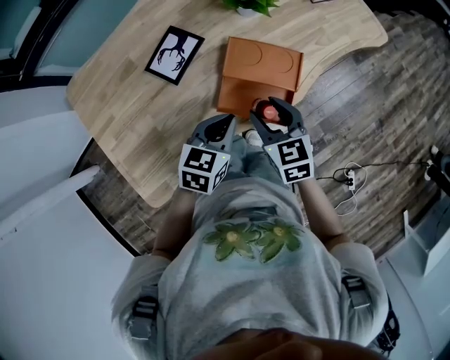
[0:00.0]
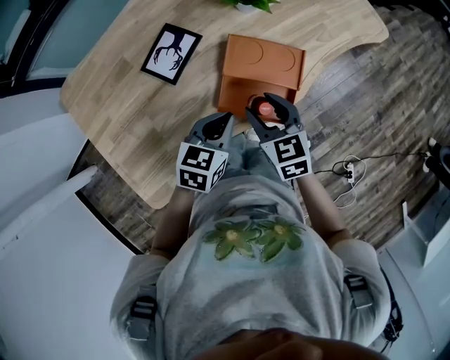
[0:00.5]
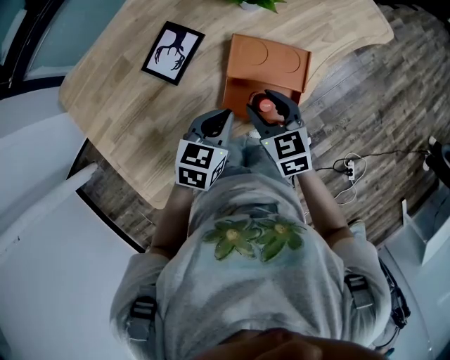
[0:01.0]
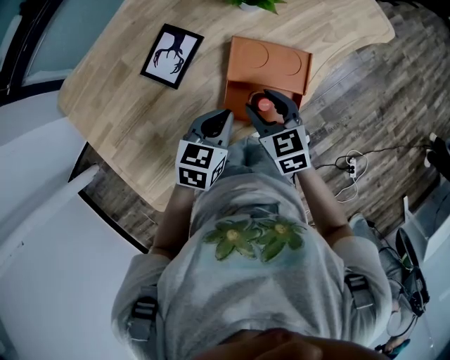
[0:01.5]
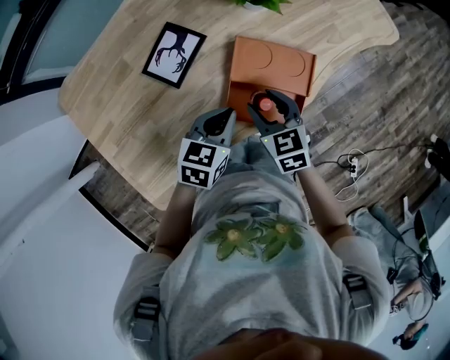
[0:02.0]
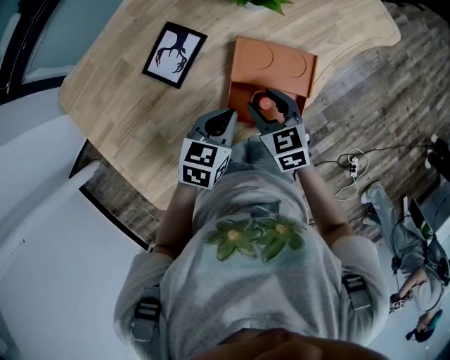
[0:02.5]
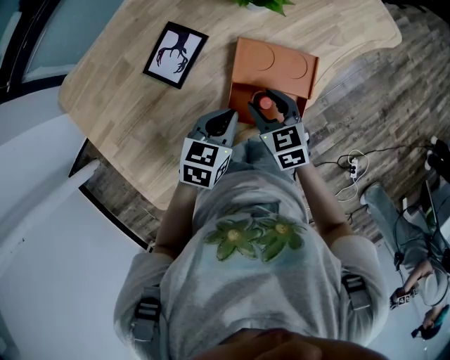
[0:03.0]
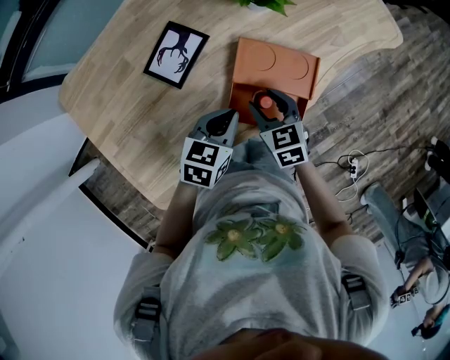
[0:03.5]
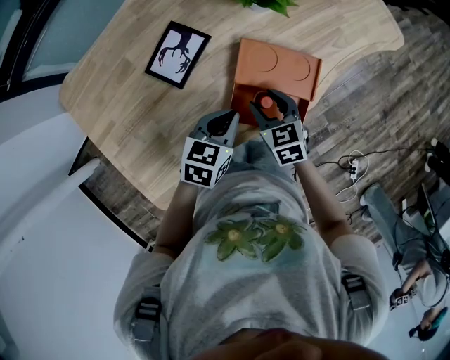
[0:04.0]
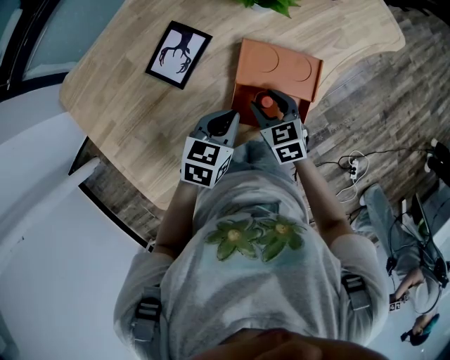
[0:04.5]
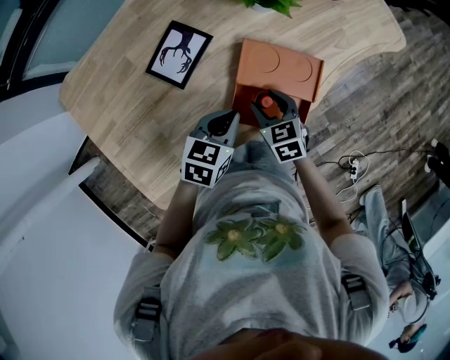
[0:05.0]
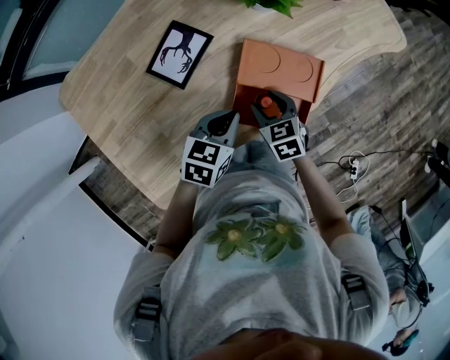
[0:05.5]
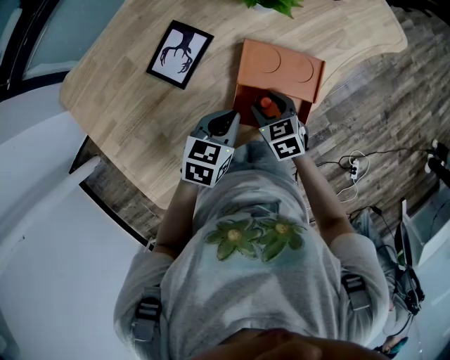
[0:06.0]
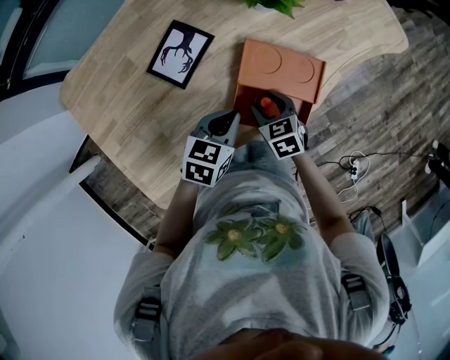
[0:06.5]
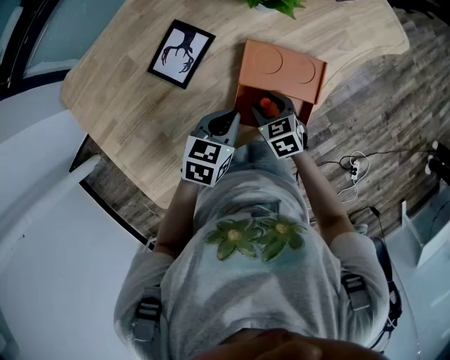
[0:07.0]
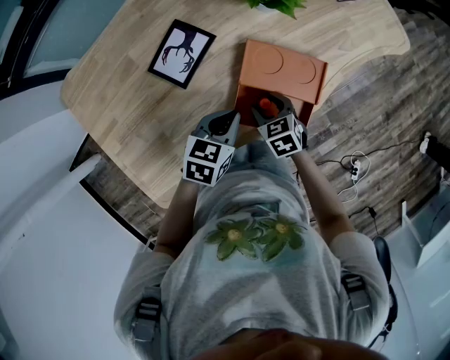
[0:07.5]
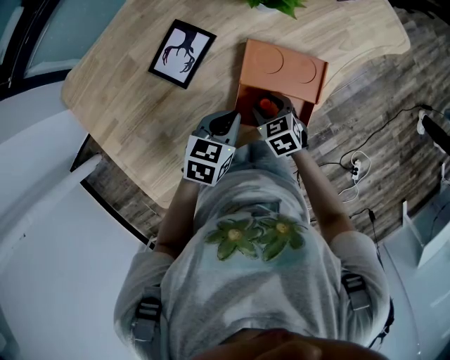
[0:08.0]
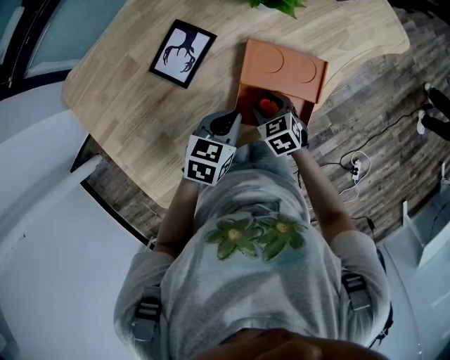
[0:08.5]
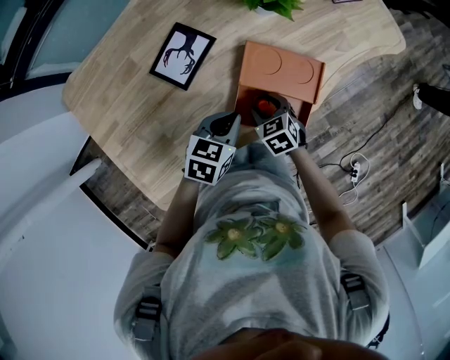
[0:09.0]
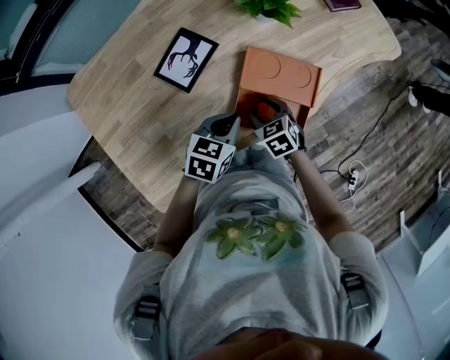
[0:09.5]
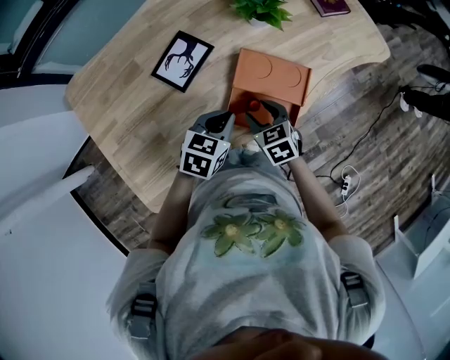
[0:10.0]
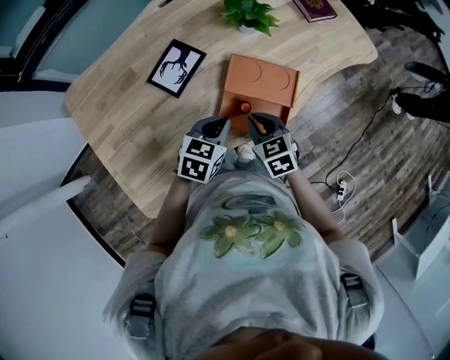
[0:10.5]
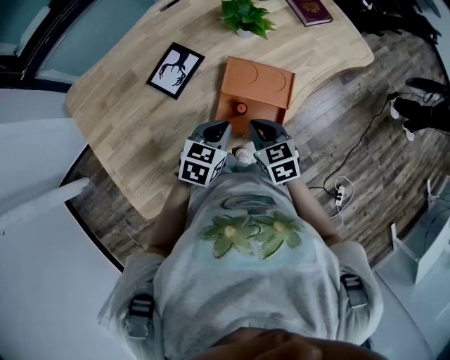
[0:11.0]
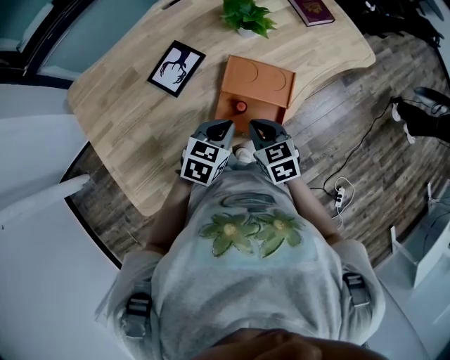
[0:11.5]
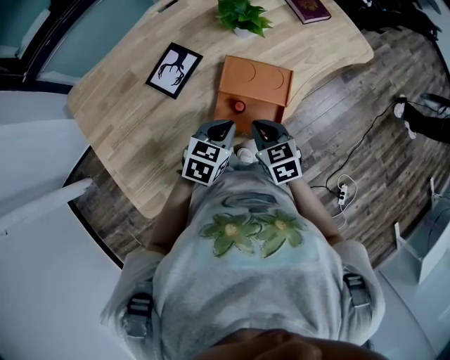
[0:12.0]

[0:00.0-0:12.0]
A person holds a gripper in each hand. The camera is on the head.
0:00.0 to 0:02.0: The right gripper is displaced downward and forward by some 5 cm; the left gripper heads forward, covering roughly 5 cm.
0:02.0 to 0:04.0: The grippers stay close to where they were, moving slightly.
0:04.0 to 0:06.0: There are only small adjustments of the grippers.
0:06.0 to 0:08.0: The grippers move only a little.
0:08.0 to 0:10.0: The right gripper travels upward by roughly 5 cm.
0:10.0 to 0:12.0: The left gripper heads to the right, covering roughly 5 cm. Meanwhile the right gripper travels upward by approximately 5 cm, and closes up.

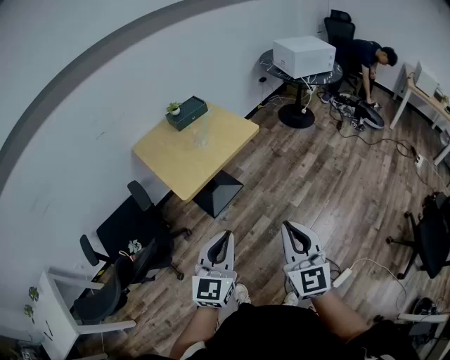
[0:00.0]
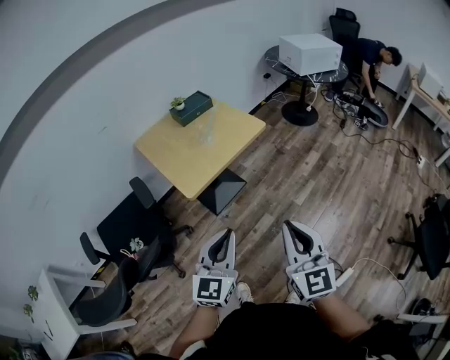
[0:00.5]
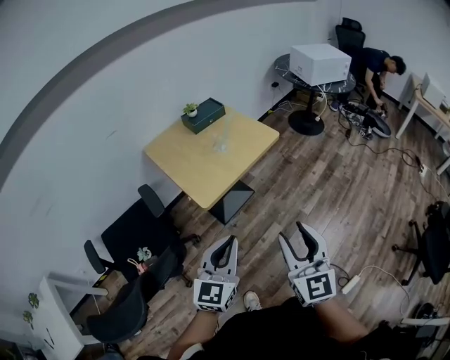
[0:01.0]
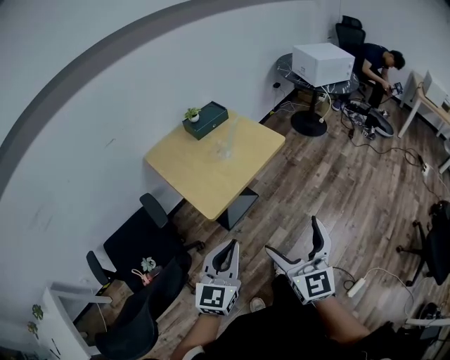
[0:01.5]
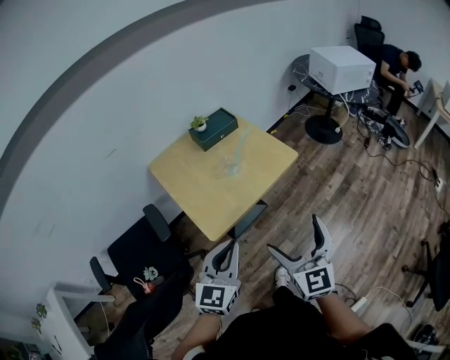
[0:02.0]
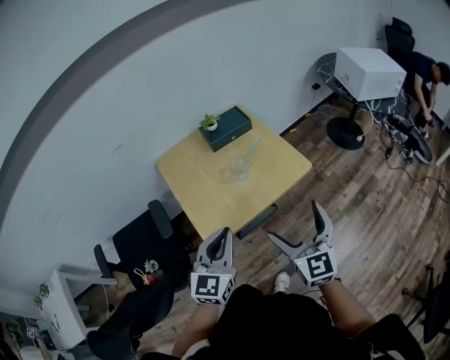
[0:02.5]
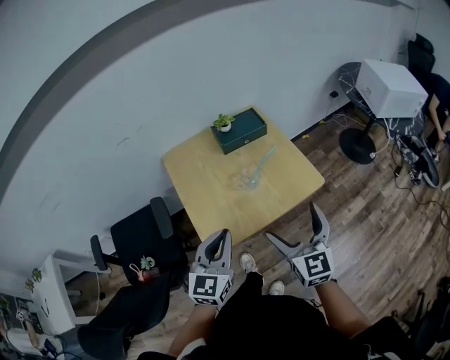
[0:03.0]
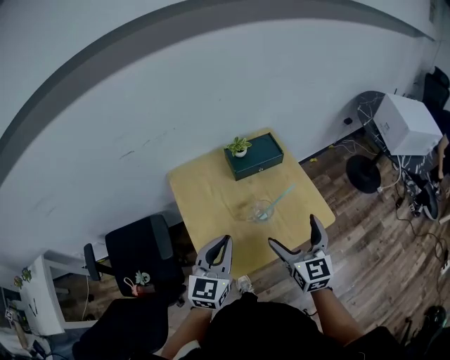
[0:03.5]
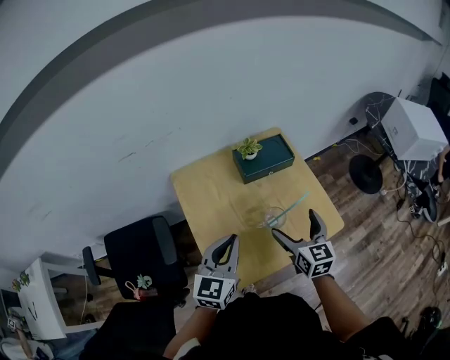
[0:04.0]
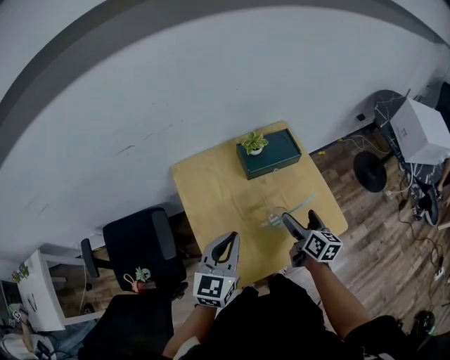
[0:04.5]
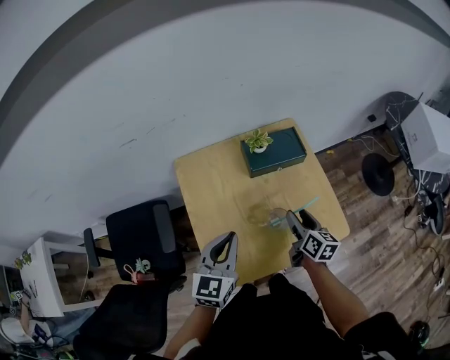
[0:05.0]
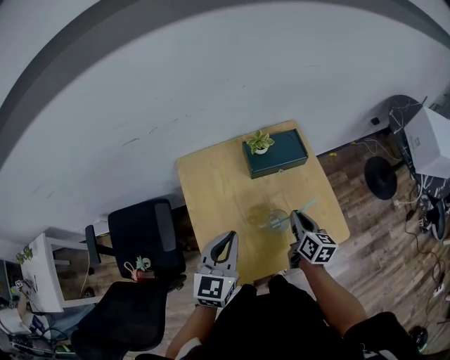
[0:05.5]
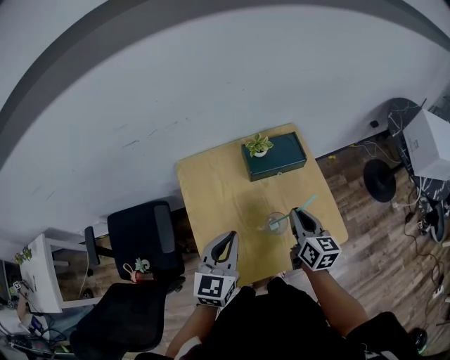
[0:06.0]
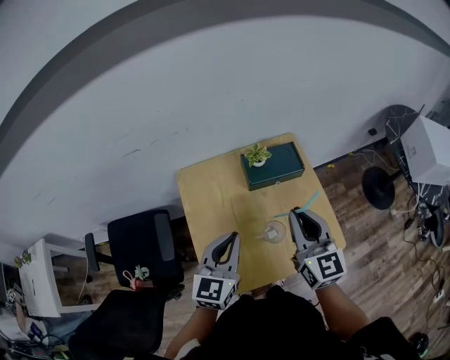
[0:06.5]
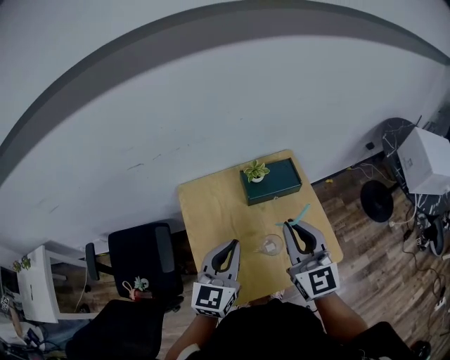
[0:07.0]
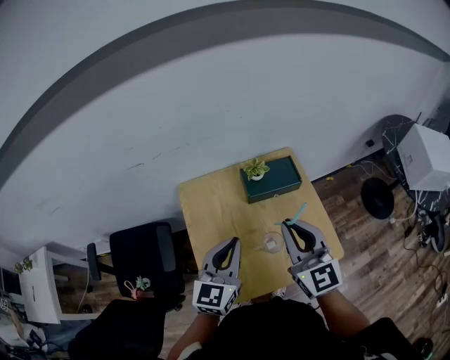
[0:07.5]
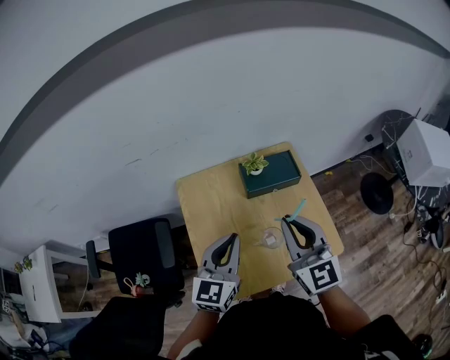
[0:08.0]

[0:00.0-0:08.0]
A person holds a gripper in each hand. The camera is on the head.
0:00.0 to 0:02.0: The two grippers go approximately 25 cm forward and to the left. The right gripper opens its fingers.
0:02.0 to 0:04.0: Both grippers travel together forward, approximately 35 cm. The right gripper changes its angle by about 30 degrees.
0:04.0 to 0:06.0: The right gripper shifts some 5 cm forward, moves approximately 10 cm downward and comes back, and closes up.
0:06.0 to 0:08.0: The right gripper goes about 20 cm upward, and changes its angle by roughly 40 degrees; the left gripper moves upward, roughly 5 cm.

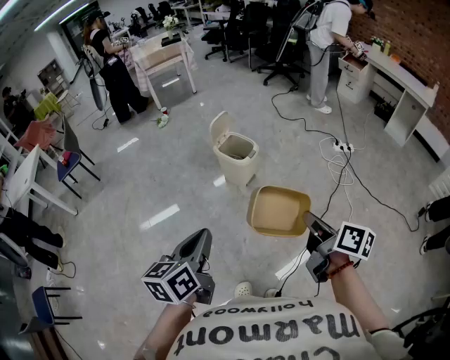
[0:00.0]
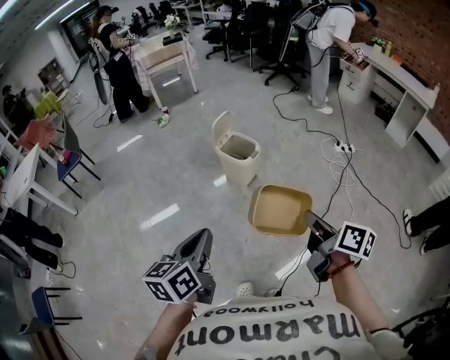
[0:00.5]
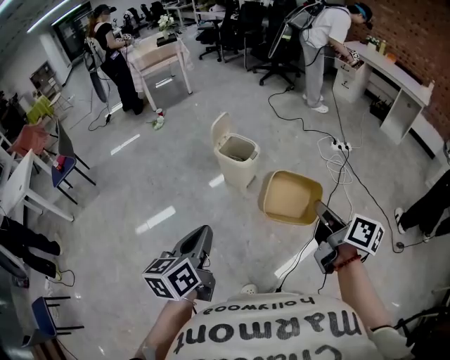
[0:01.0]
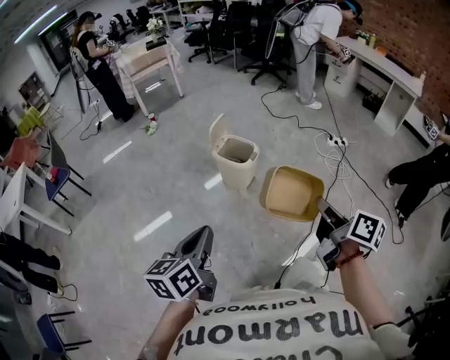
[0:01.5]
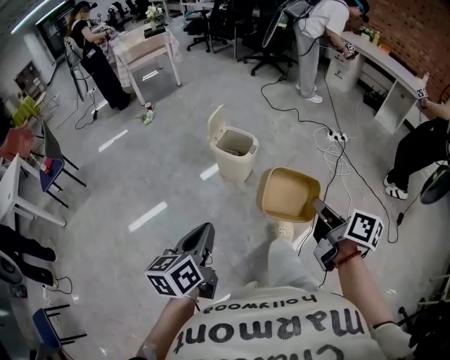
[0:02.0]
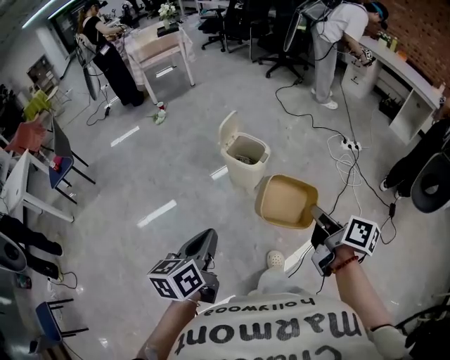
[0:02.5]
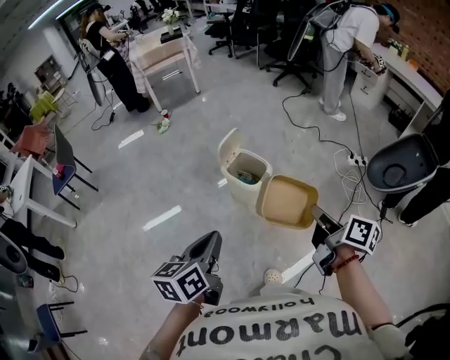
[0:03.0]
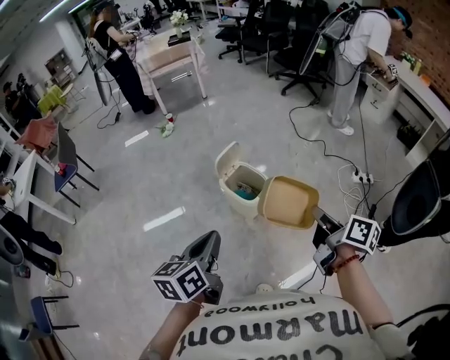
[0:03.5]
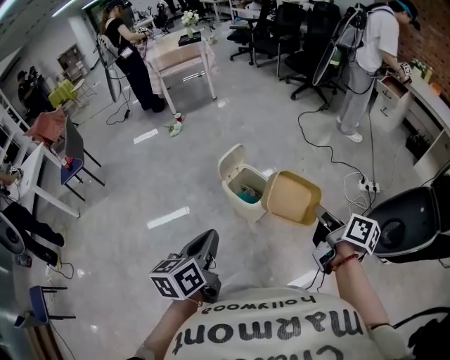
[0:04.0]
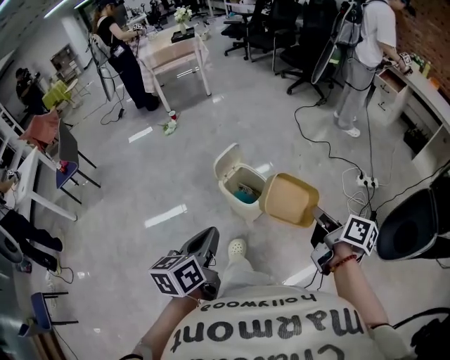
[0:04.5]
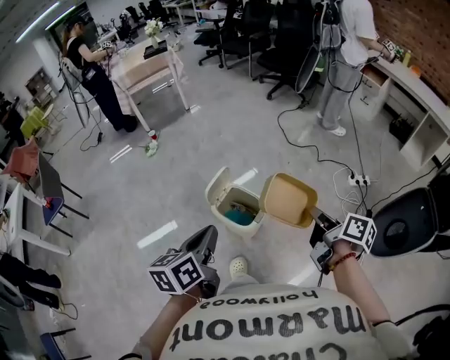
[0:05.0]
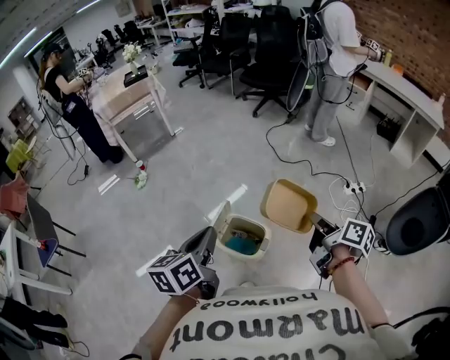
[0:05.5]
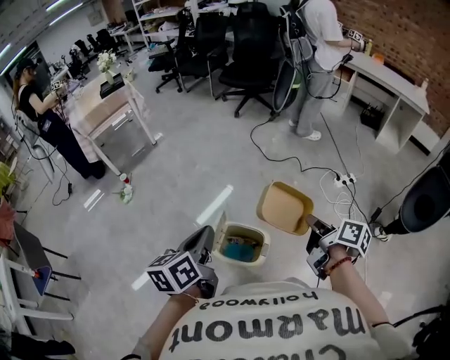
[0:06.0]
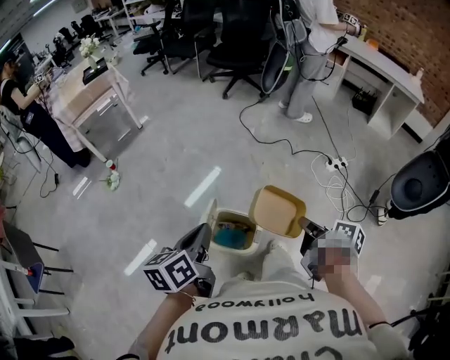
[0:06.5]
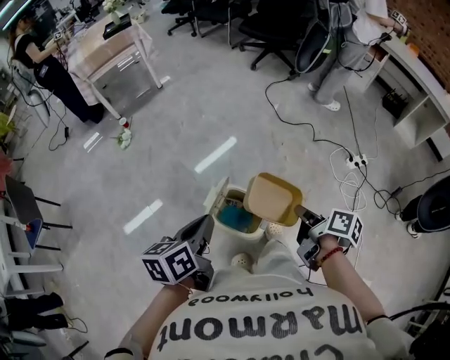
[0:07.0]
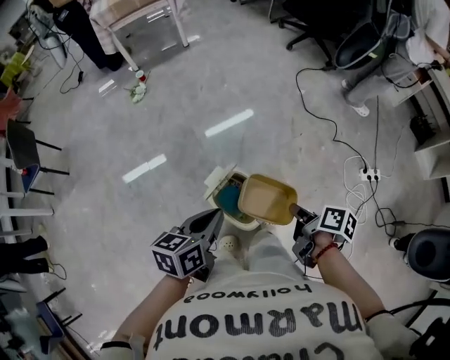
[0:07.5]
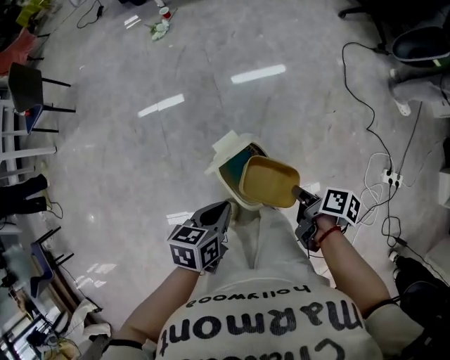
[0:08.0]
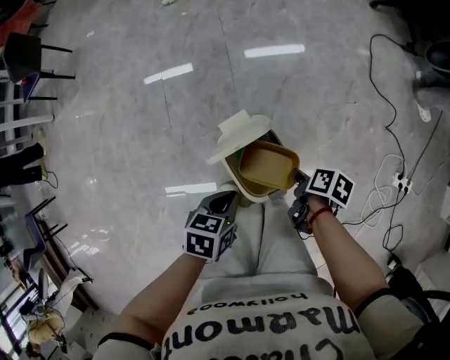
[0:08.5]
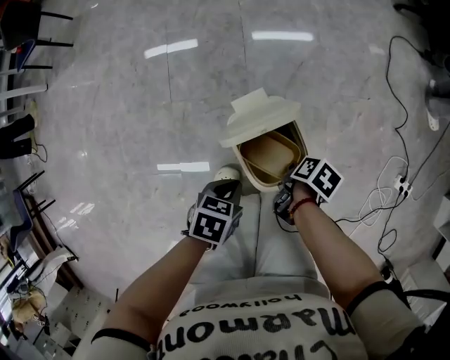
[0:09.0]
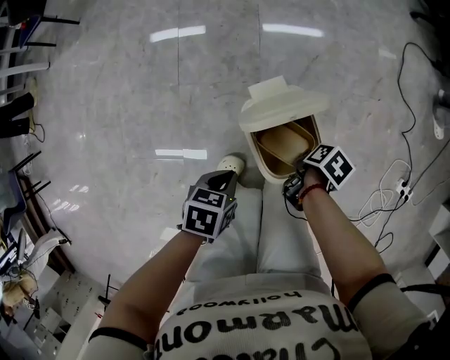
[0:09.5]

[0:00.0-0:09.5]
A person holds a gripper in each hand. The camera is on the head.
0:00.0 to 0:02.0: The right gripper moves forward and to the left, approximately 10 cm. The left gripper goes some 10 cm to the left and forward.
0:02.0 to 0:04.0: The right gripper heads forward, covering roughly 30 cm. Meanwhile the left gripper is displaced forward and to the right by roughly 25 cm.
0:04.0 to 0:05.5: The left gripper heads forward, covering approximately 30 cm, while the right gripper travels forward by some 20 cm.
0:05.5 to 0:07.5: The left gripper shifts roughly 15 cm downward and forward, while the right gripper goes approximately 20 cm downward, to the left and forward, and swivels some 30 degrees.
0:07.5 to 0:09.5: The two grippers go approximately 30 cm downward. The right gripper tips its fingers downward by approximately 40 degrees. The left gripper points its fingers roughly 30 degrees further downward.
